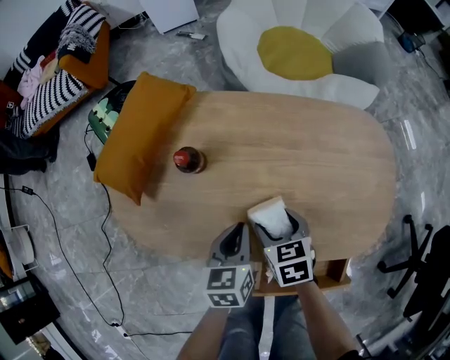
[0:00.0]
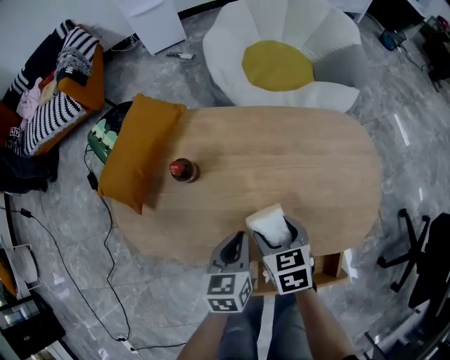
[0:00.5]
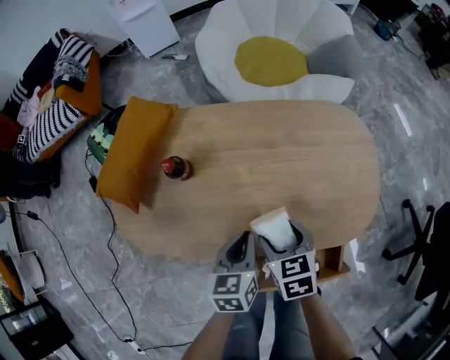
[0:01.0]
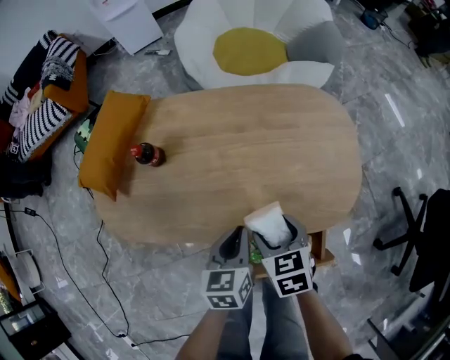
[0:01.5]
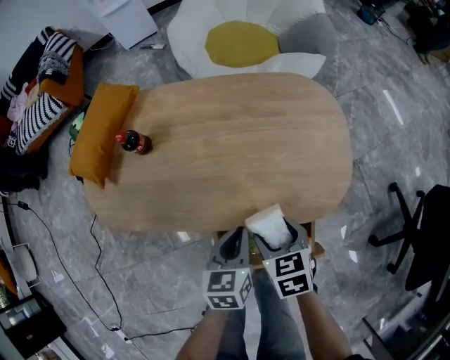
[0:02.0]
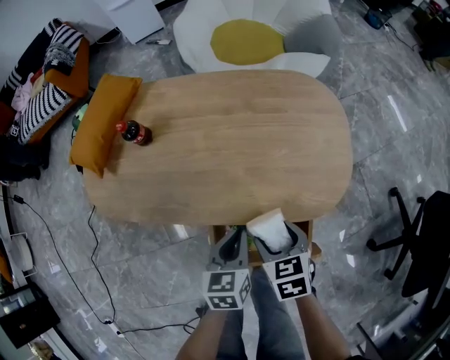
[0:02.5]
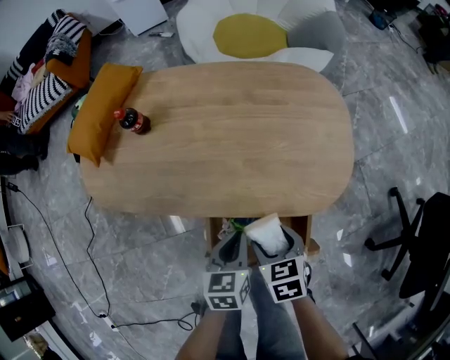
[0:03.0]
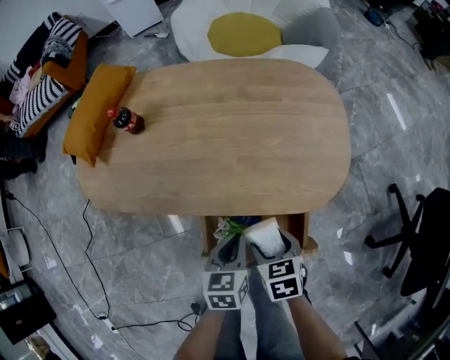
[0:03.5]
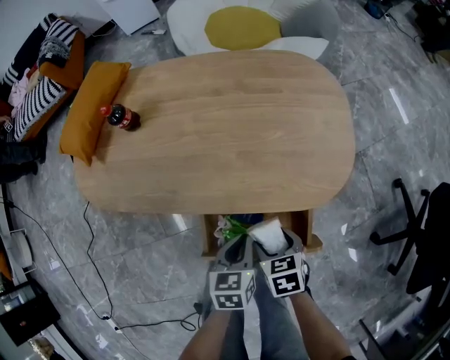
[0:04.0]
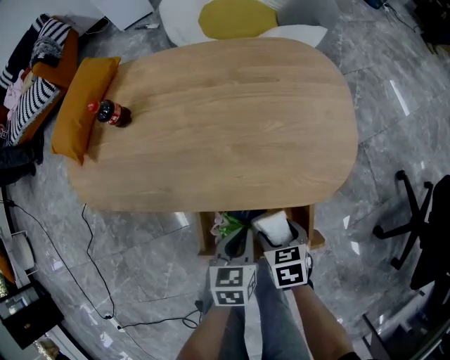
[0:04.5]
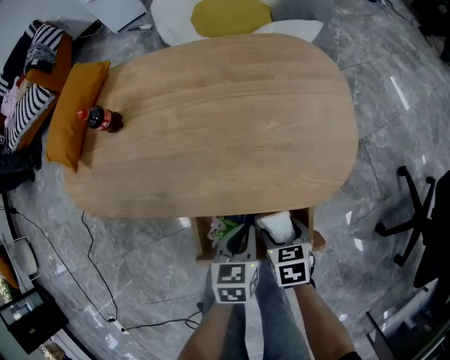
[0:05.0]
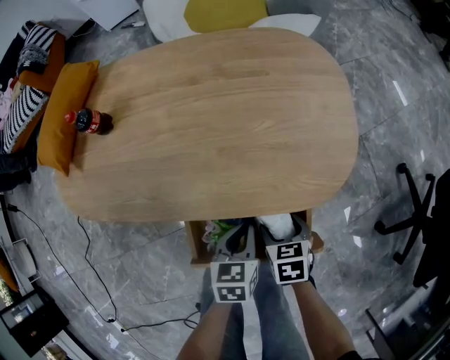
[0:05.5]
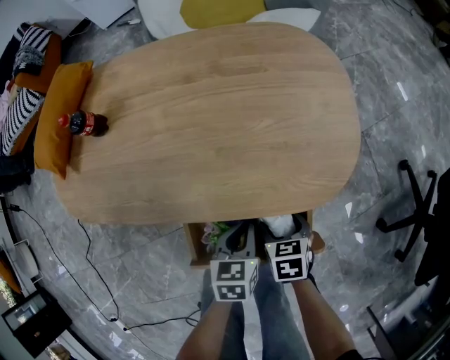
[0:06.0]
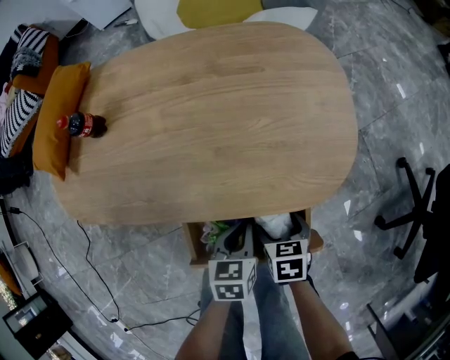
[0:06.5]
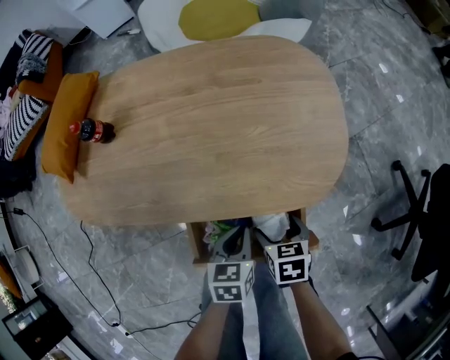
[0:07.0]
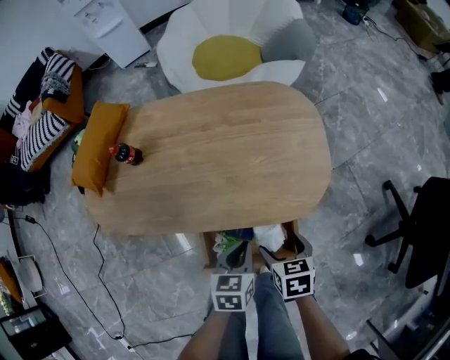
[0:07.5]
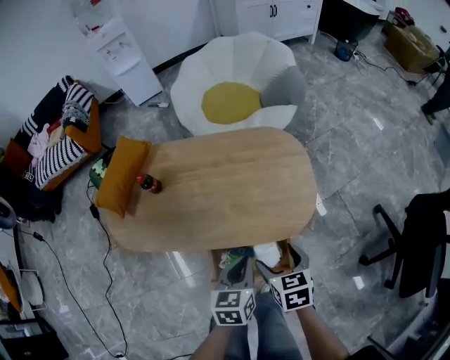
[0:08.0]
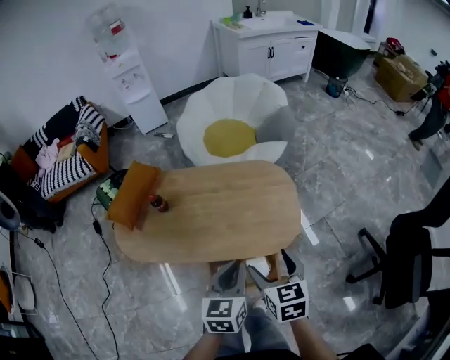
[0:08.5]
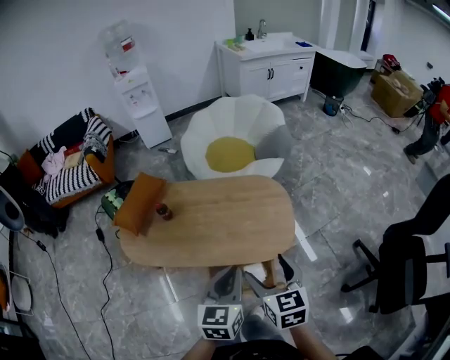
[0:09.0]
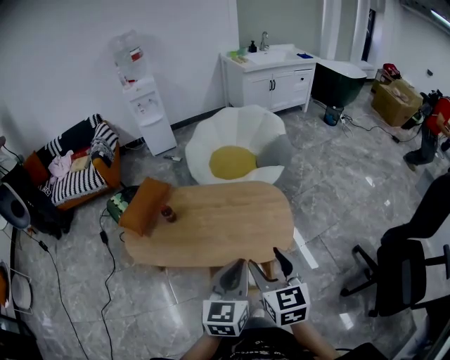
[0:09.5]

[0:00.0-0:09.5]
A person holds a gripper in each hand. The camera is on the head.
0:00.0 to 0:02.0: Both grippers travel together to the right and backward, some 20 cm.
0:02.0 to 0:04.0: The right gripper is displaced downward and backward by some 15 cm, while the left gripper goes some 10 cm backward and downward.
0:04.0 to 0:05.5: The right gripper is displaced downward and to the right by roughly 10 cm, while the left gripper moves approximately 5 cm.
0:05.5 to 0:07.5: Both grippers travel together upward, some 10 cm.
0:07.5 to 0:09.5: The grippers both shift upward by roughly 40 cm. The right gripper points its fingers approximately 40 degrees further upward. The left gripper tips its fingers upward by about 30 degrees.

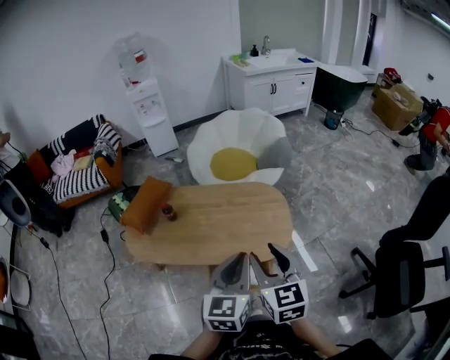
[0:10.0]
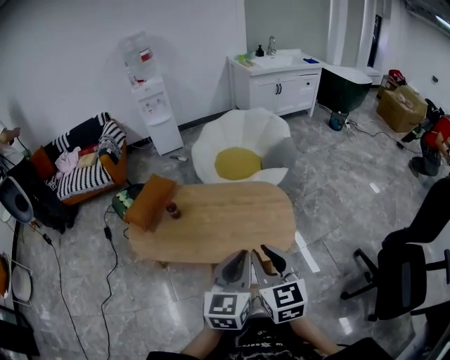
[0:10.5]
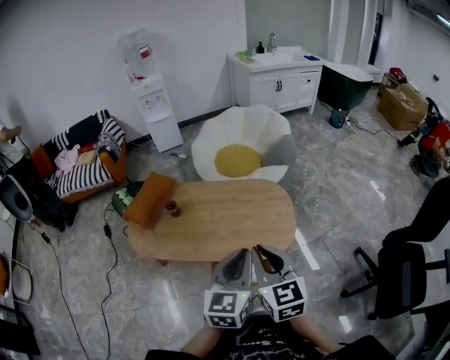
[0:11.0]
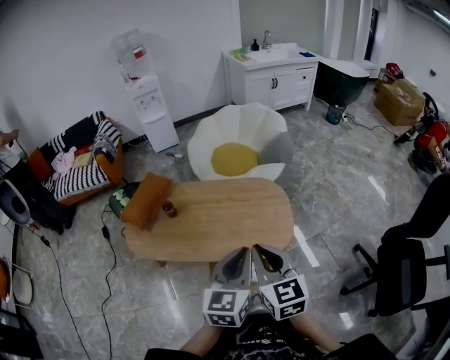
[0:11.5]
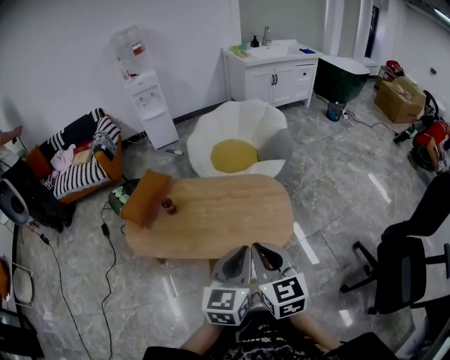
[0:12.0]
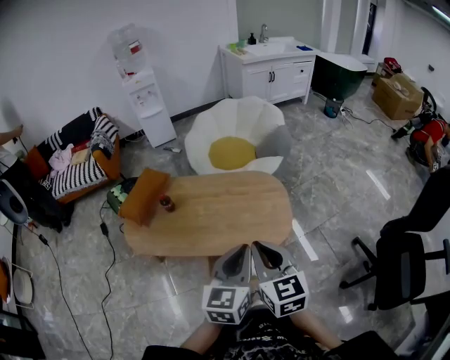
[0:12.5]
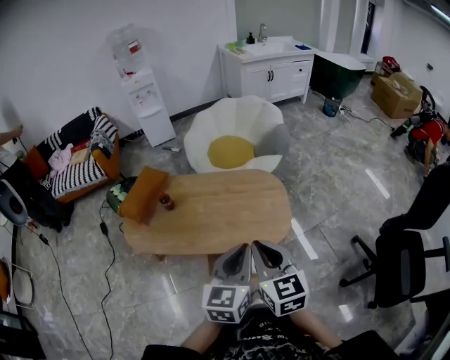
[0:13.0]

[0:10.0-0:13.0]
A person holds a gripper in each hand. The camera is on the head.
0:10.0 to 0:11.5: The right gripper closes its fingers.
0:11.5 to 0:13.0: The grippers stay close to where they were, moving slightly.

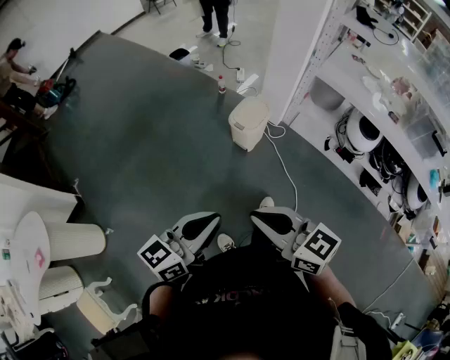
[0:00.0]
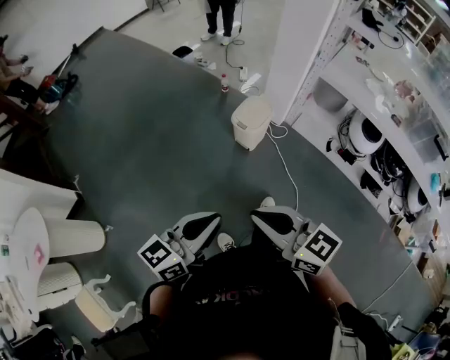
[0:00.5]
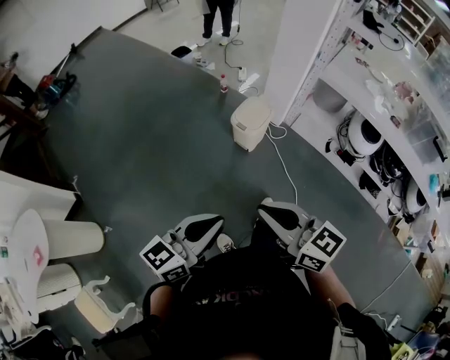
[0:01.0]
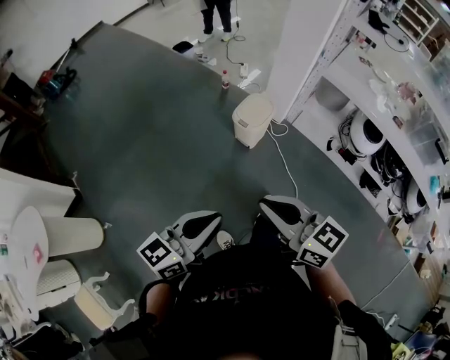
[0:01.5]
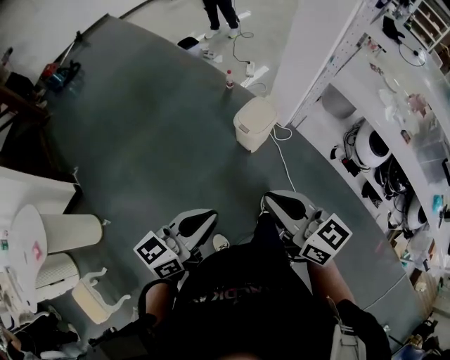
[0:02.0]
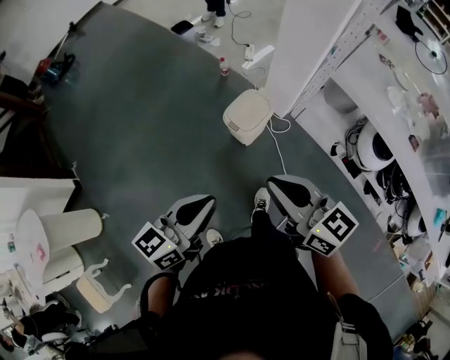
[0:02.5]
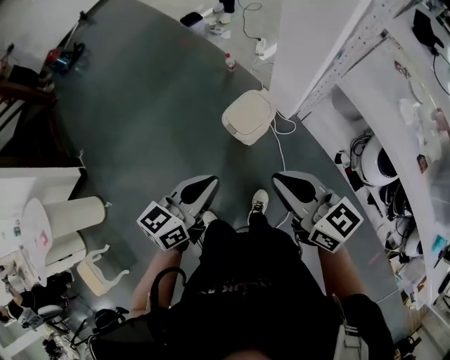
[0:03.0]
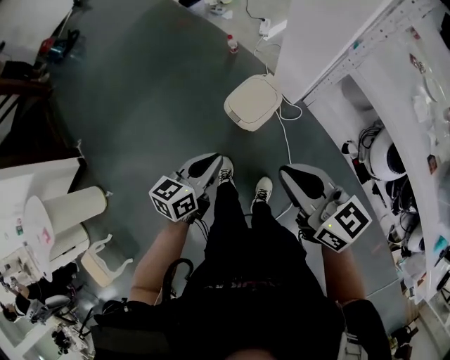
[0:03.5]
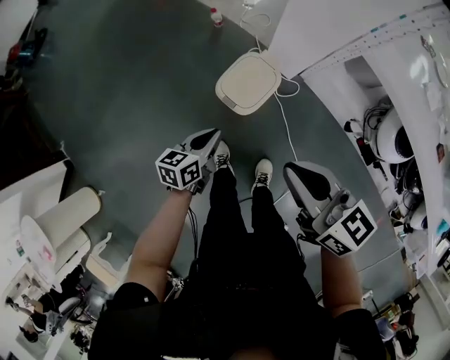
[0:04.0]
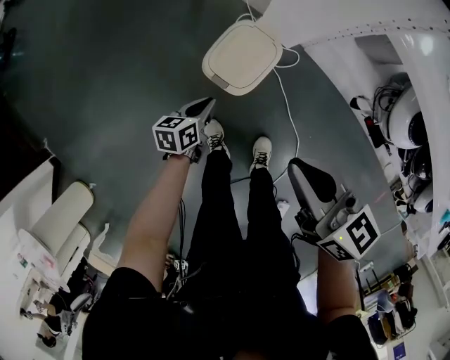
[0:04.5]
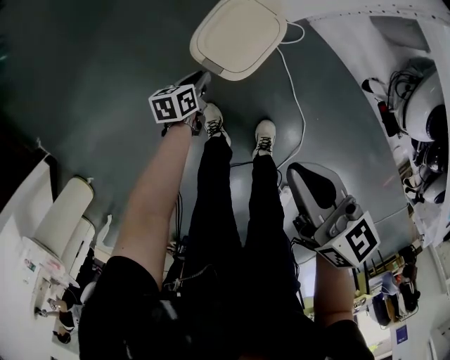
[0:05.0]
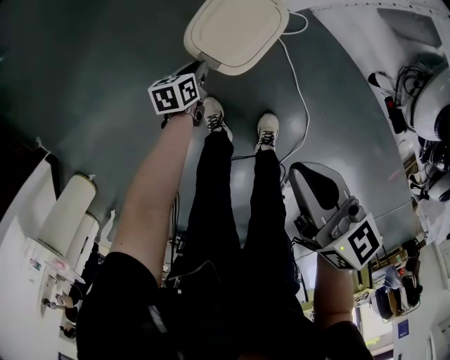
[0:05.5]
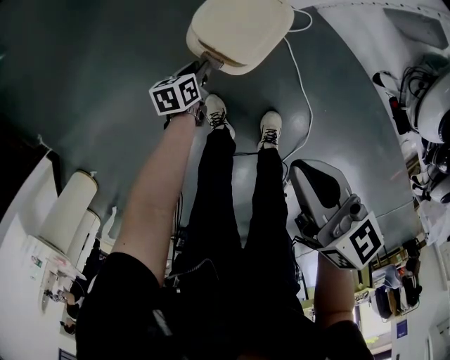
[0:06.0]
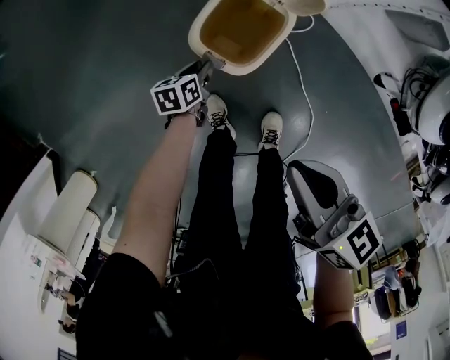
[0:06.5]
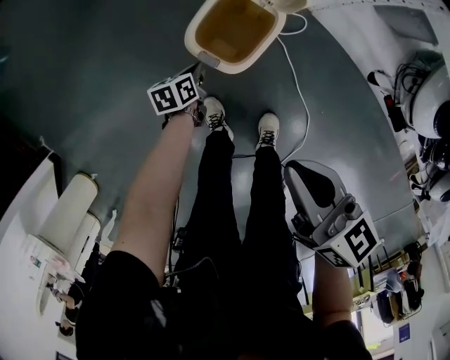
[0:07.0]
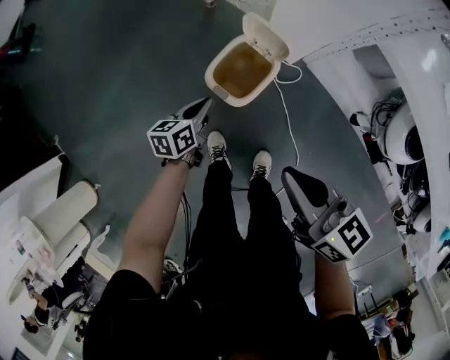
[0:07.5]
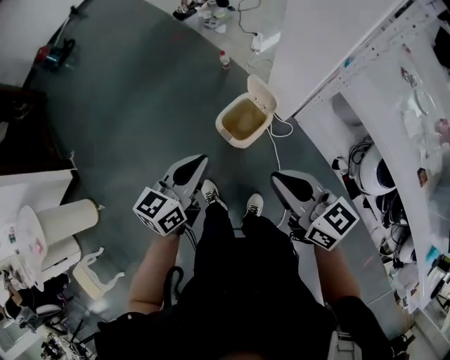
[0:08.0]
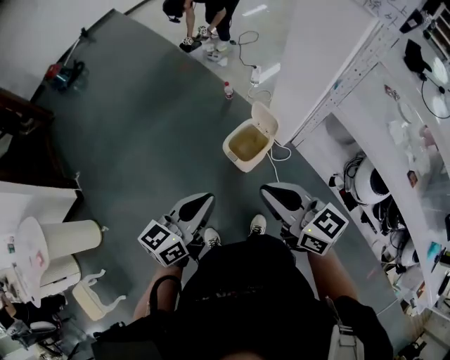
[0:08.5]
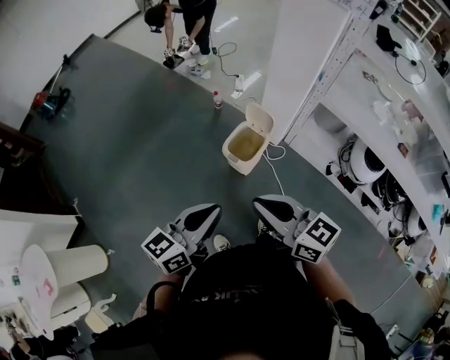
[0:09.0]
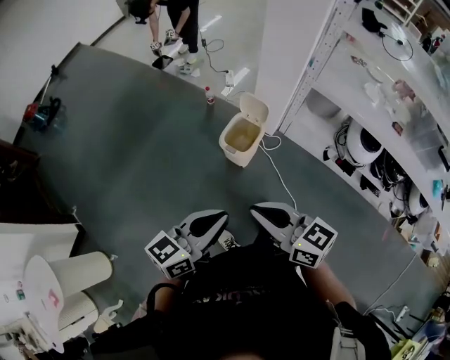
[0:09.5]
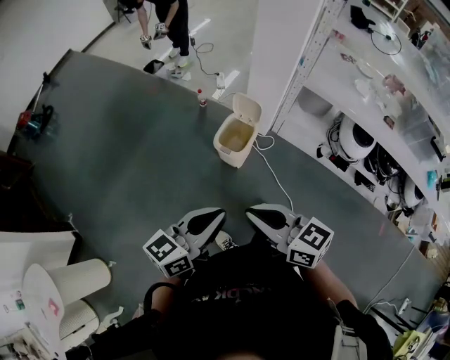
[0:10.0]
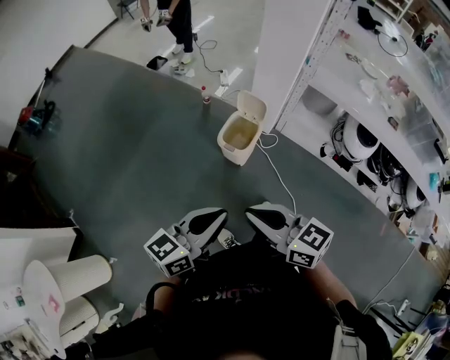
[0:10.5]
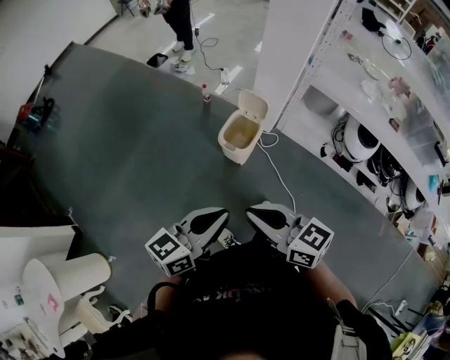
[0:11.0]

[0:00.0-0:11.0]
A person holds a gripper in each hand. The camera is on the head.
0:00.0 to 0:02.0: Both grippers move forward, approximately 10 cm.
0:02.0 to 0:03.5: The right gripper moves forward and to the right, roughly 30 cm, while the left gripper goes approximately 40 cm forward, to the right and downward, and turns by some 20 degrees.
0:03.5 to 0:05.5: The left gripper goes some 50 cm downward, and points its fingers about 30 degrees further downward. The right gripper moves downward, about 25 cm, and turns by about 30 degrees.
0:05.5 to 0:07.5: The right gripper is displaced upward by roughly 15 cm; the left gripper travels upward by approximately 25 cm.
0:07.5 to 0:09.0: The right gripper shifts roughly 30 cm upward, backward and to the left, while the left gripper is displaced upward and backward by approximately 50 cm, and rotates about 40 degrees.
0:09.0 to 0:11.0: The right gripper heads backward and to the left, covering some 10 cm, while the left gripper is displaced backward by some 5 cm.

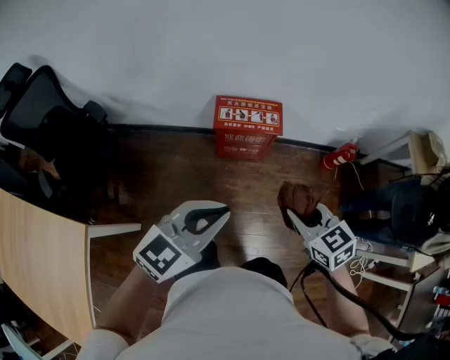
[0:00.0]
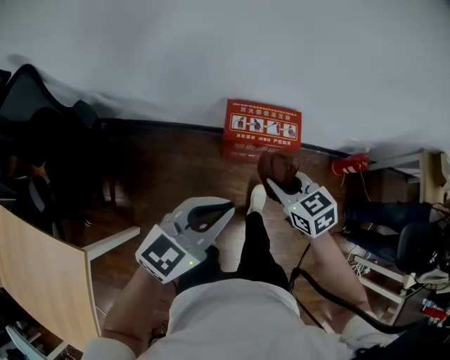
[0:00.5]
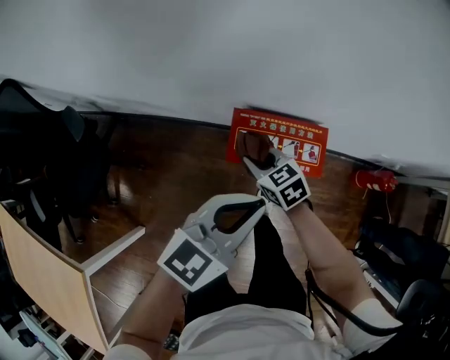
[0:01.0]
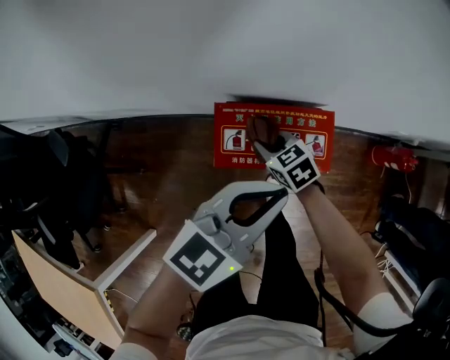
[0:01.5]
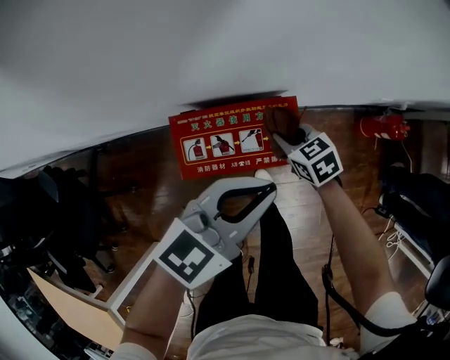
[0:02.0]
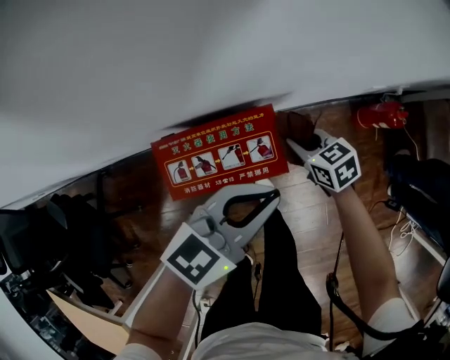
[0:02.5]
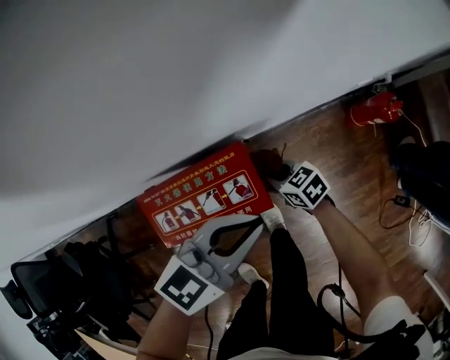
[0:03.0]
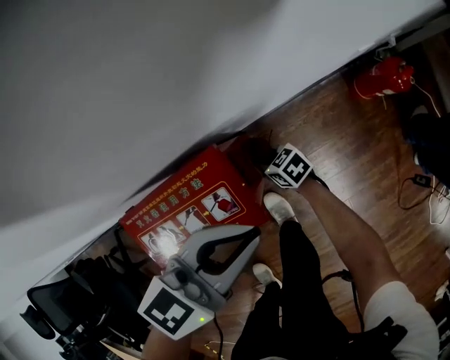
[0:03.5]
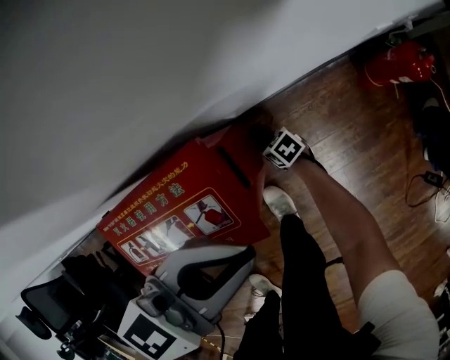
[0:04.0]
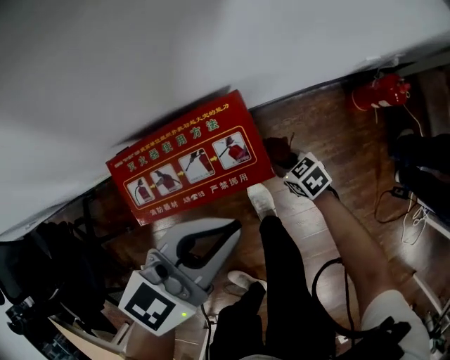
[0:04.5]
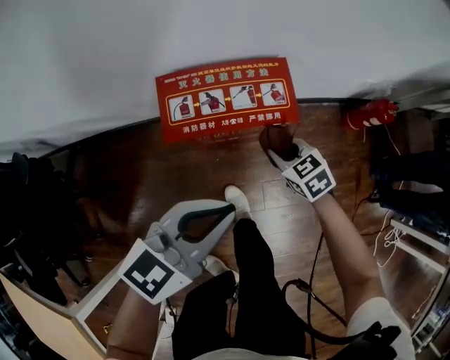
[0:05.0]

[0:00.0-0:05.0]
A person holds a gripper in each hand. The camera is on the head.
0:00.0 to 0:02.5: Both grippers are carried forward, some 40 cm. The left gripper heads downward, covering approximately 25 cm, and rotates about 20 degrees. Meanwhile the right gripper travels downward by roughly 35 cm, and swivels approximately 20 degrees.
0:02.5 to 0:05.0: The left gripper moves about 20 cm; the right gripper travels downward and back again, about 35 cm each way.
